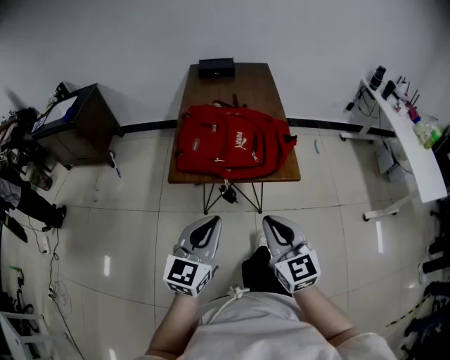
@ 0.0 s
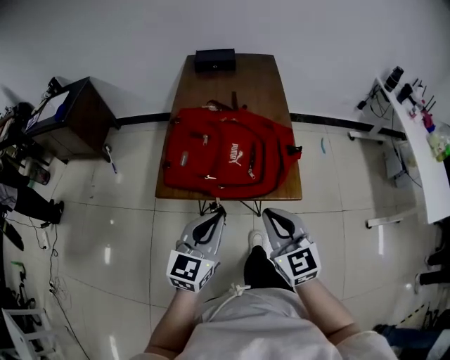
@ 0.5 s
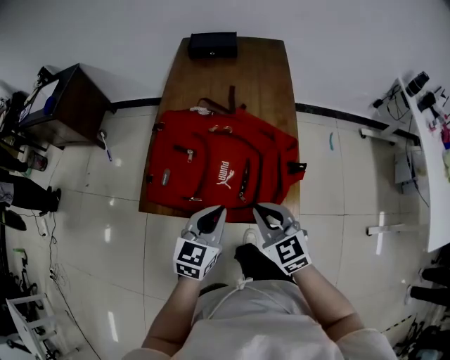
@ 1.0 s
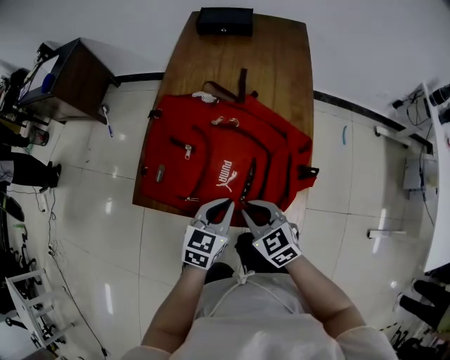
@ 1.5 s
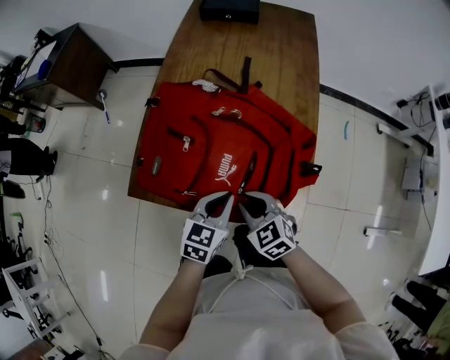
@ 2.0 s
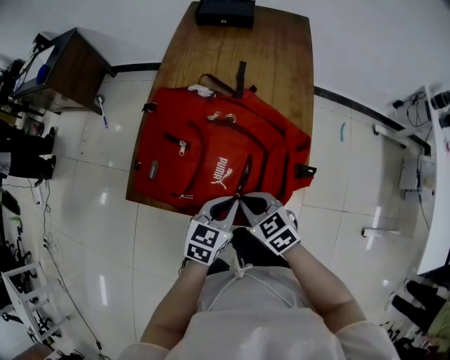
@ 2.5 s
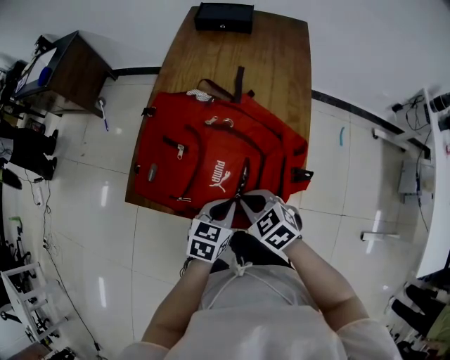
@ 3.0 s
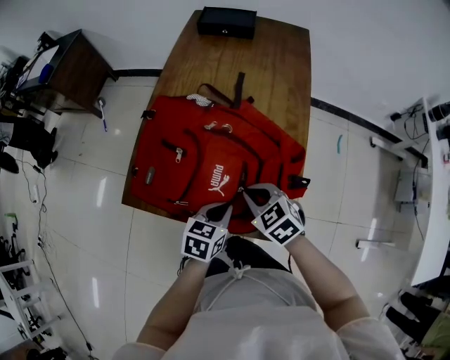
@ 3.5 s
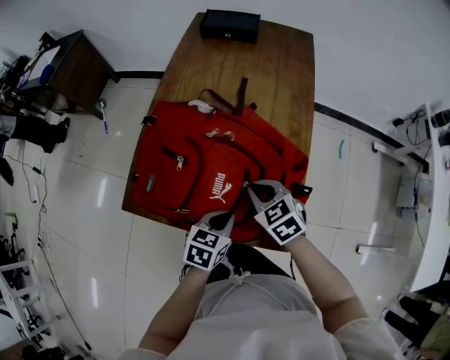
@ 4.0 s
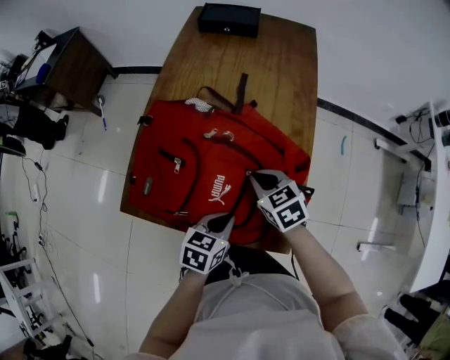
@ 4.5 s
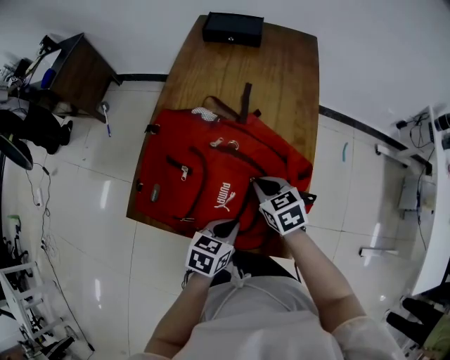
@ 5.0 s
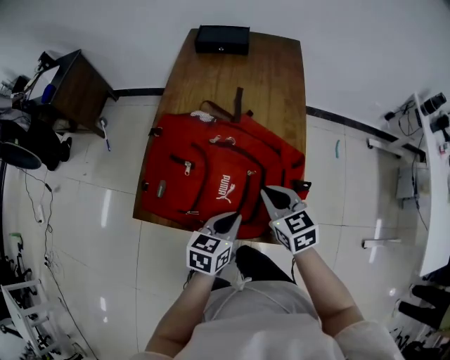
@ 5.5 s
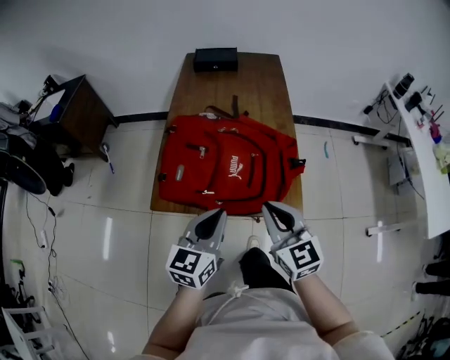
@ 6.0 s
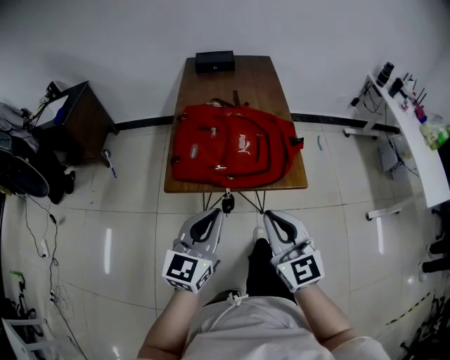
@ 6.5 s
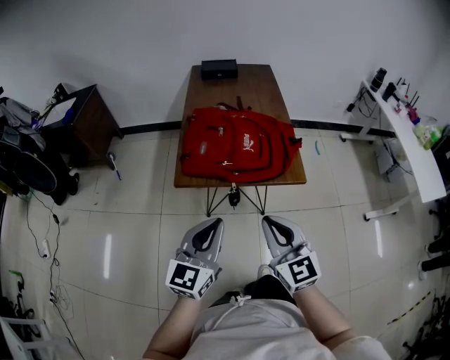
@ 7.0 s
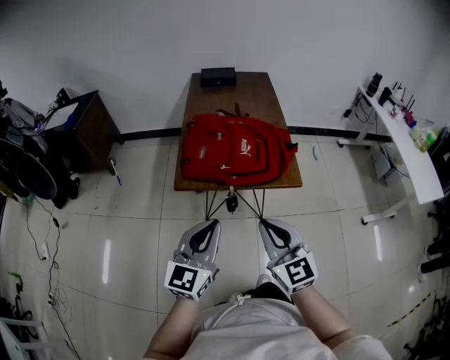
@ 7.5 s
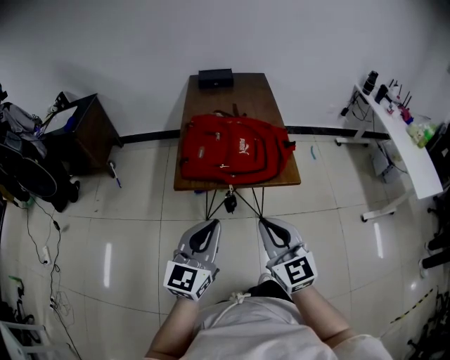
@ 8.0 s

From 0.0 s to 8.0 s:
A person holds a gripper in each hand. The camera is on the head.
From 0.0 s to 2.0 s: The left gripper heads forward, downward and to the right, covering roughly 40 cm, and swivels some 30 degrees; the right gripper is displaced forward and downward by some 40 cm, and changes its angle by about 40 degrees.
From 2.0 s to 4.0 s: The right gripper is displaced forward and to the right by roughly 10 cm.
From 4.0 s to 6.0 s: The right gripper moves backward and upward, approximately 25 cm, and tilts its fingers some 30 degrees upward, while the left gripper goes approximately 25 cm upward, backward and to the left, and rotates roughly 30 degrees.
From 6.0 s to 8.0 s: Both grippers travel together backward, some 25 cm.

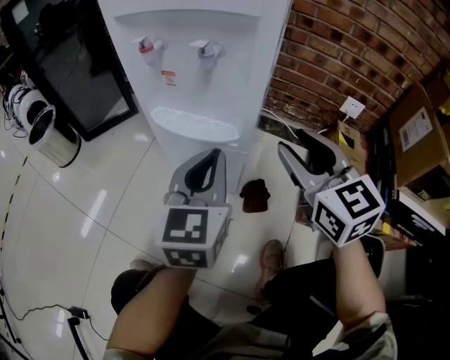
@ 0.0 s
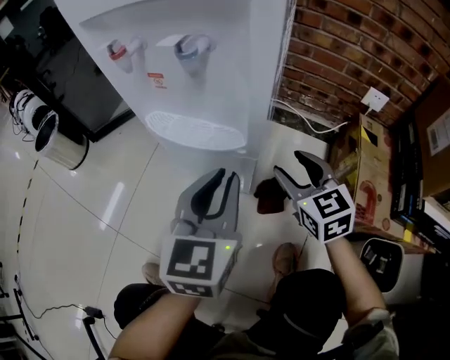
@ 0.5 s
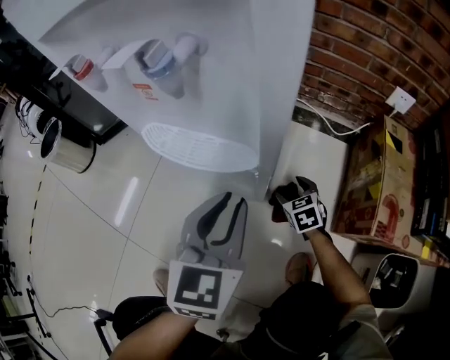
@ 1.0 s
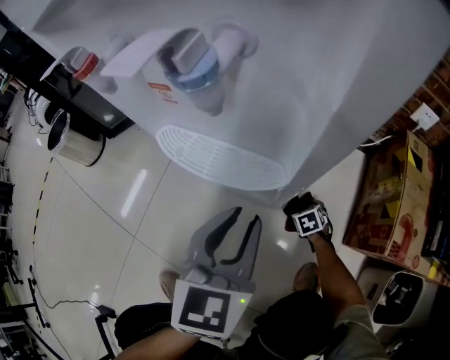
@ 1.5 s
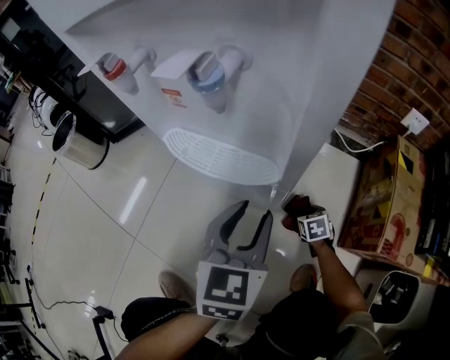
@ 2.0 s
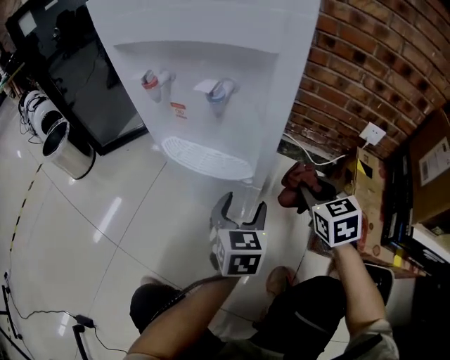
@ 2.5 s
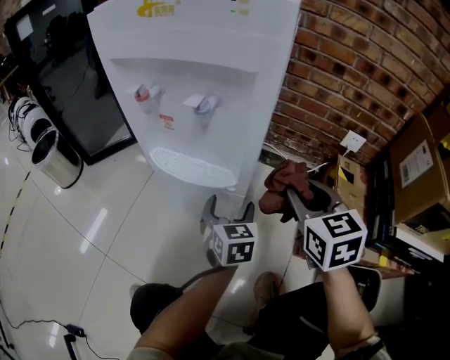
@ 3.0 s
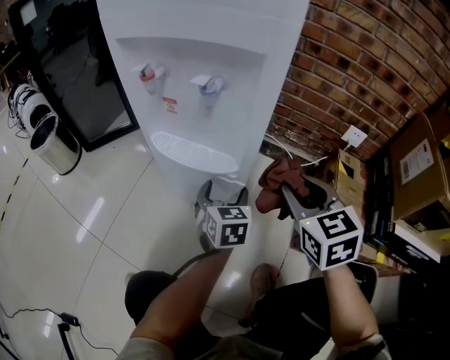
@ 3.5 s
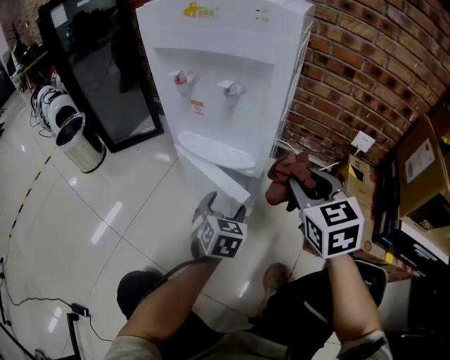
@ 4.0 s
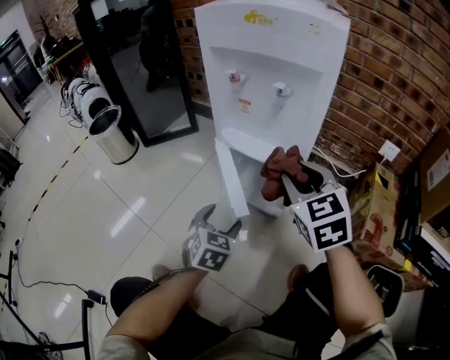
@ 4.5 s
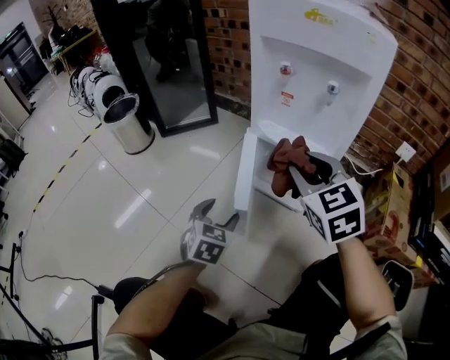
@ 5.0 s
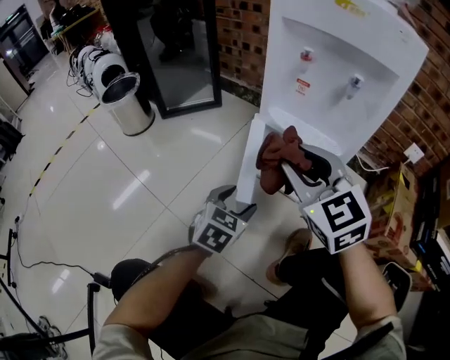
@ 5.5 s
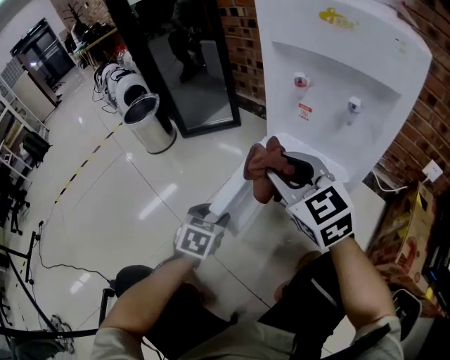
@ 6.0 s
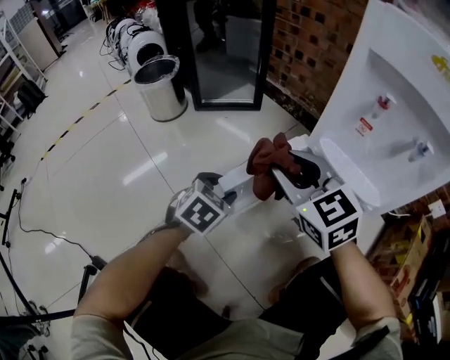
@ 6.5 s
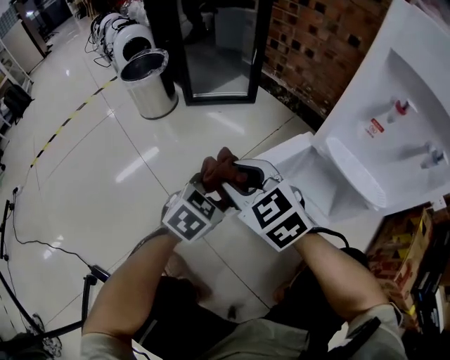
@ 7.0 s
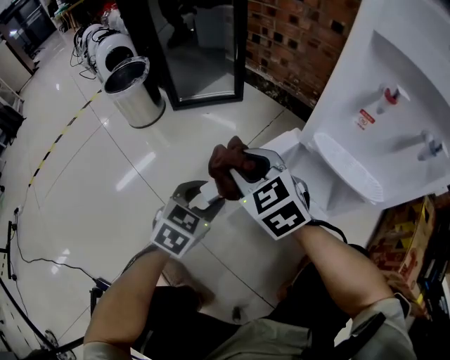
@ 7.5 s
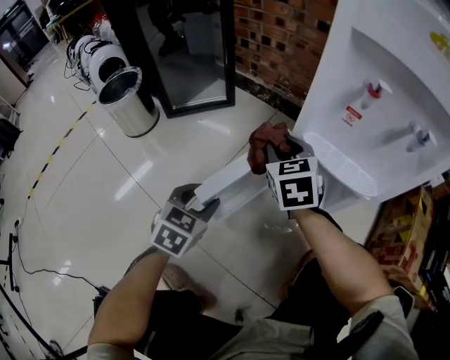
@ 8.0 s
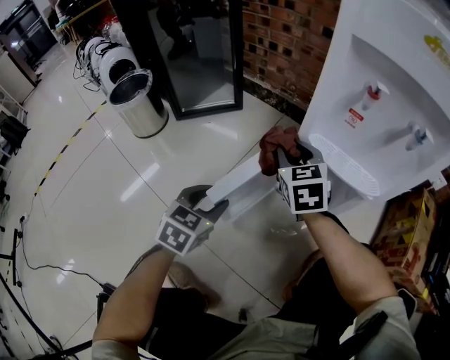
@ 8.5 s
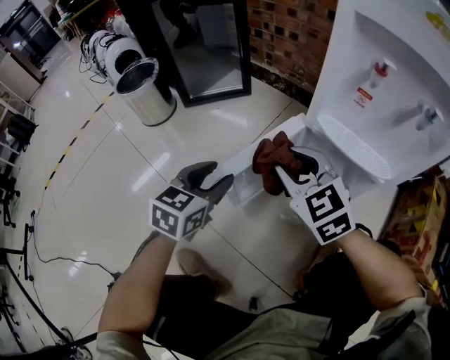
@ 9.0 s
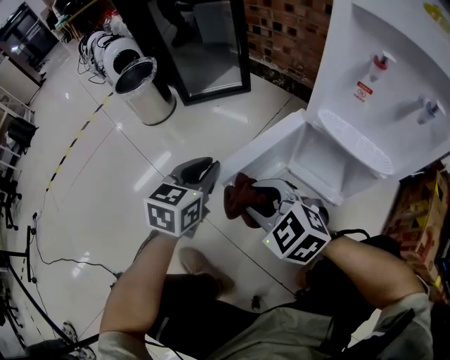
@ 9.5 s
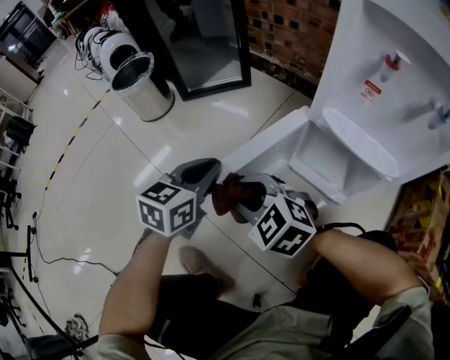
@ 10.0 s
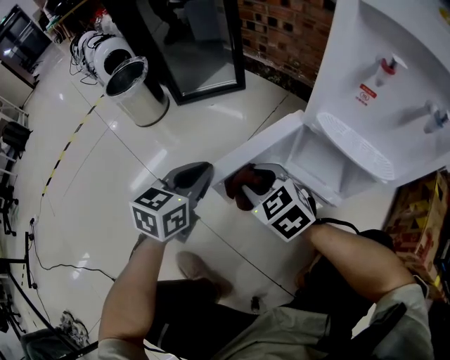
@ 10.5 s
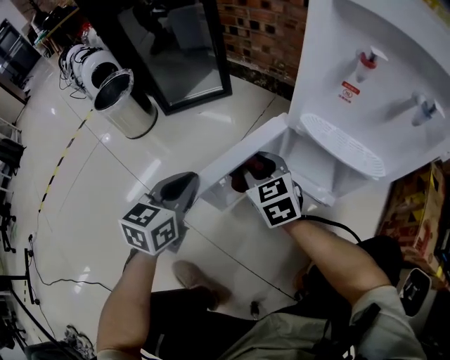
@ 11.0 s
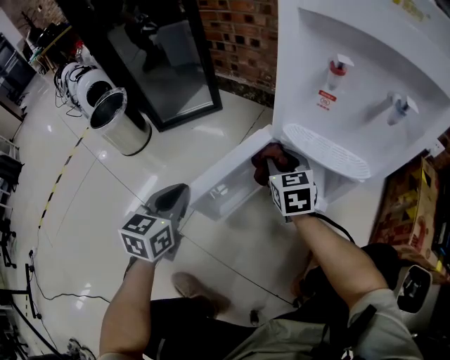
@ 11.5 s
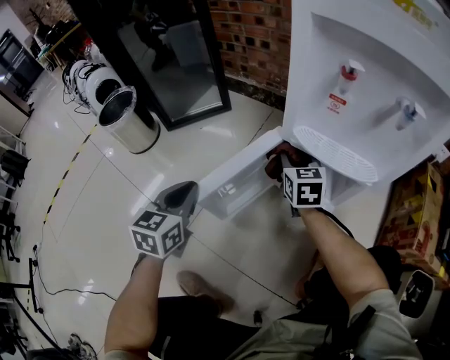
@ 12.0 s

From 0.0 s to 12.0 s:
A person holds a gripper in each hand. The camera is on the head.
From 0.0 s to 2.0 s: The right gripper is displaced downward by roughly 50 cm, and tilts its fingers about 50 degrees downward; the left gripper shifts about 10 cm downward, and opens up.
From 2.0 s to 4.0 s: The left gripper shifts some 5 cm downward, and opens its fingers. The right gripper travels upward by roughly 50 cm, and angles its fingers upward, by roughly 30 degrees.
From 4.0 s to 6.0 s: Both grippers travel together to the left, approximately 30 cm. The right gripper swivels roughly 40 degrees; the left gripper closes its fingers.
From 6.0 s to 8.0 s: The left gripper moves forward and to the left, about 10 cm; the right gripper is displaced forward and downward by roughly 20 cm, moves approximately 20 cm to the left and comes back, and rotates about 30 degrees.
From 8.0 s to 10.0 s: The left gripper moves upward, some 5 cm, turns by some 20 degrees, and closes its fingers. The right gripper moves approximately 25 cm, and rotates some 50 degrees.
From 10.0 s to 12.0 s: The right gripper goes about 30 cm to the right and forward, and changes its angle by approximately 60 degrees.

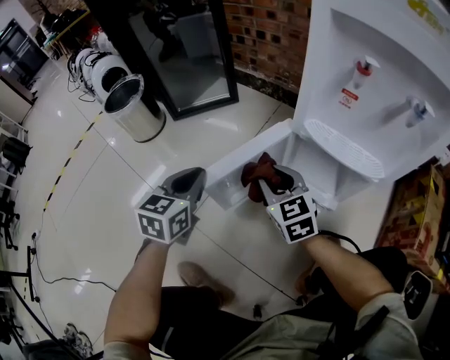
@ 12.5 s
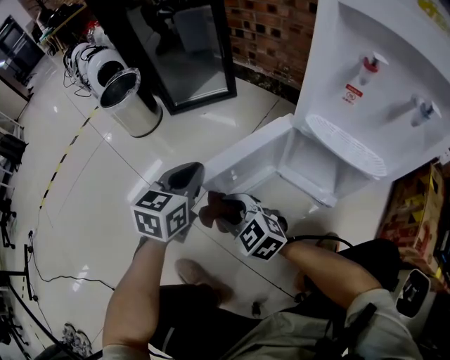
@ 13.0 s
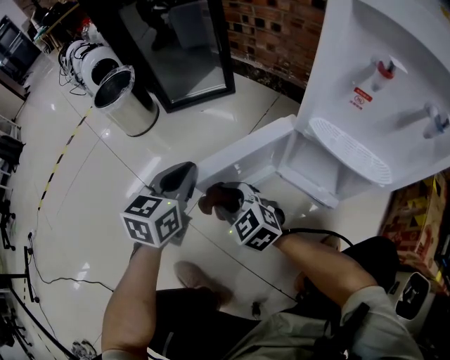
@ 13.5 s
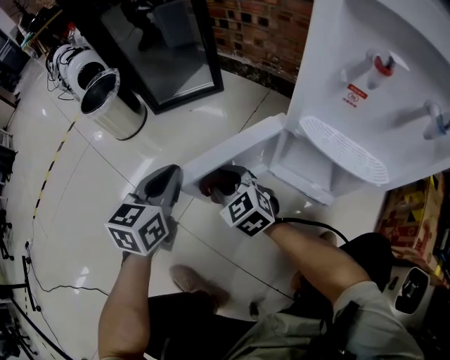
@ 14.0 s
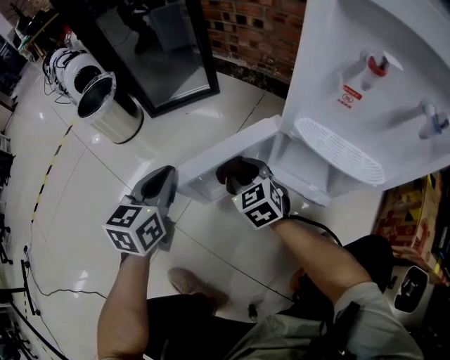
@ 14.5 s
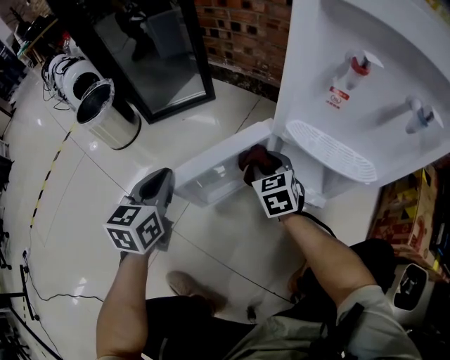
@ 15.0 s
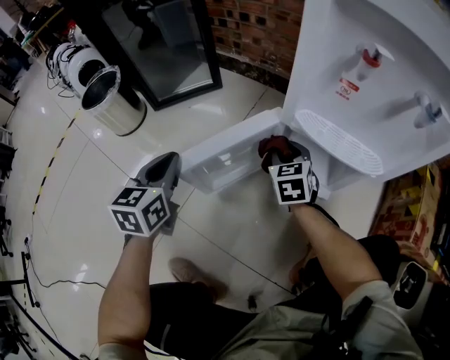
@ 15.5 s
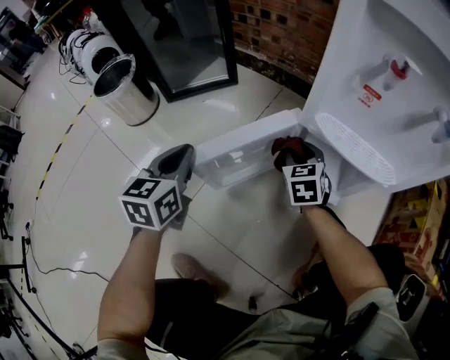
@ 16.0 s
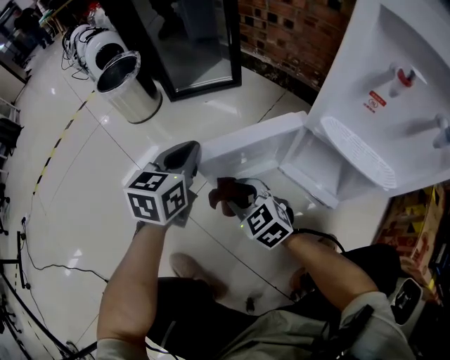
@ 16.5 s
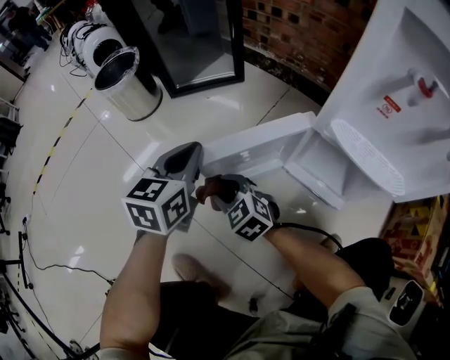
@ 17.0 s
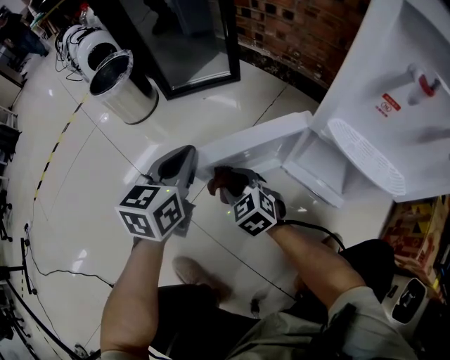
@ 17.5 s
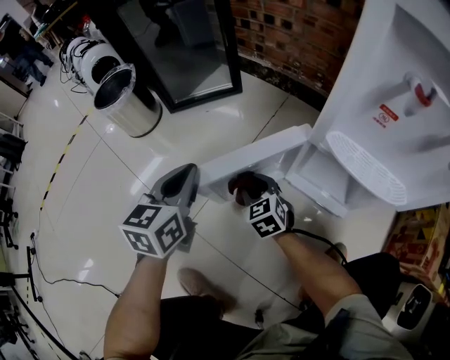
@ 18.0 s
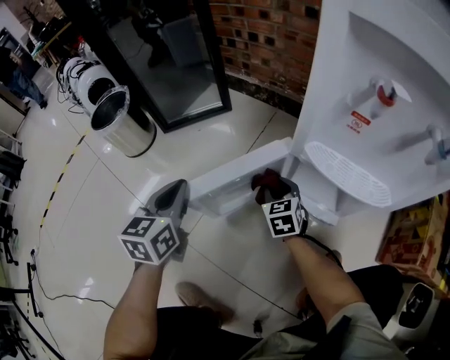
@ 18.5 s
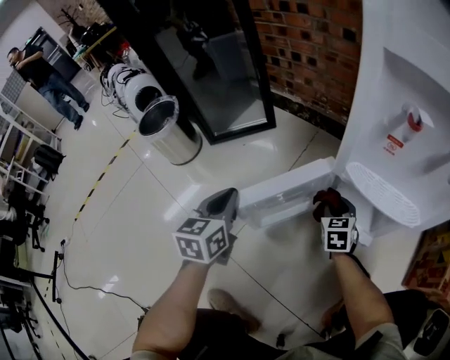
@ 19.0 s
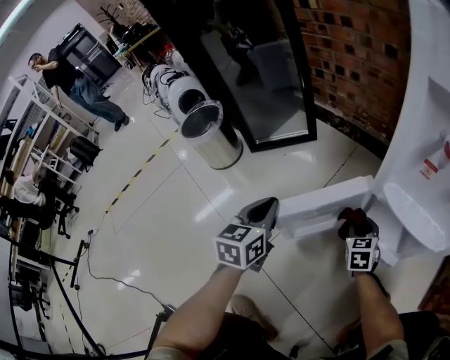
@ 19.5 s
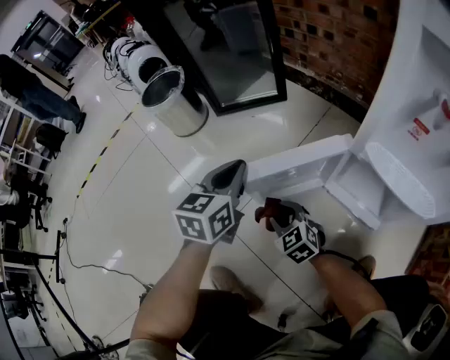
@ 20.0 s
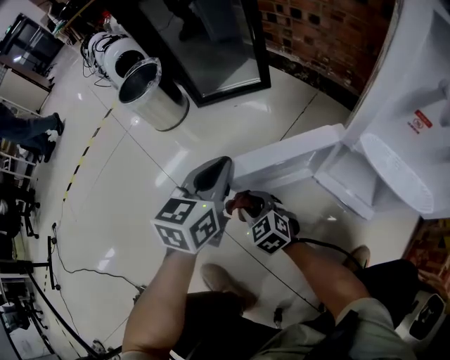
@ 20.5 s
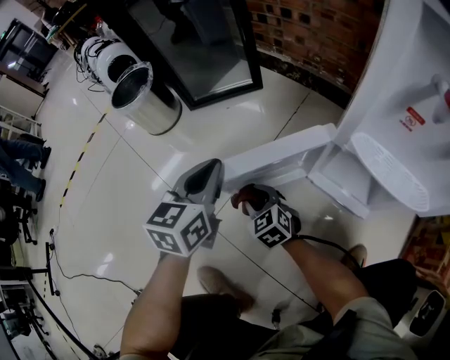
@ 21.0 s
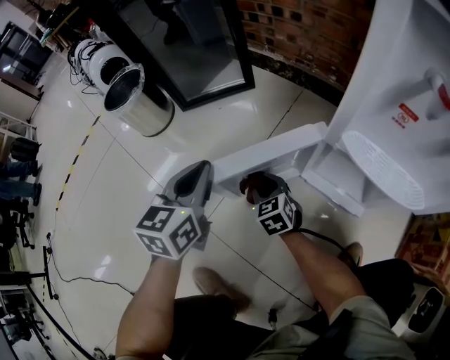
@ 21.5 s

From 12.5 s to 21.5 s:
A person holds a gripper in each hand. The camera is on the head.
From 12.5 s to 14.5 s: The right gripper shifts about 10 cm downward and forward, and reaches approximately 15 cm to the left, then returns.
From 14.5 s to 17.0 s: The right gripper moves about 15 cm, and rotates roughly 20 degrees.
From 17.0 s to 19.5 s: The right gripper changes place by some 25 cm, and turns by approximately 50 degrees.
From 19.5 s to 21.5 s: The right gripper goes approximately 15 cm to the left, and swivels roughly 20 degrees.
